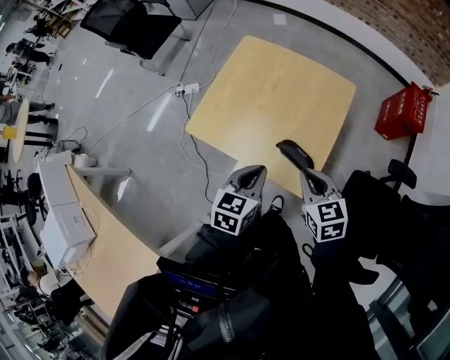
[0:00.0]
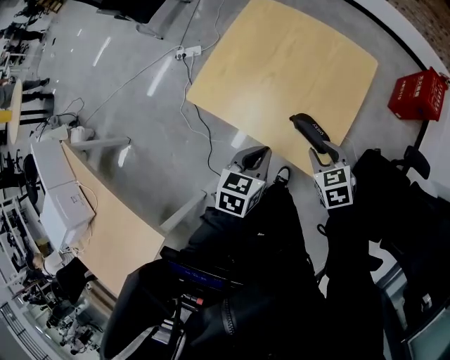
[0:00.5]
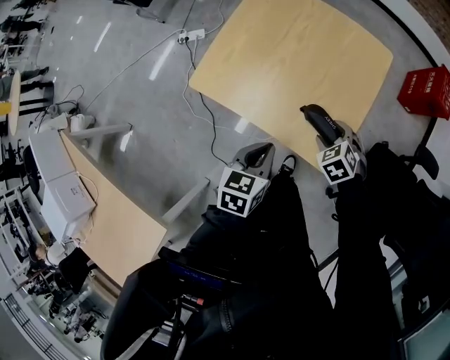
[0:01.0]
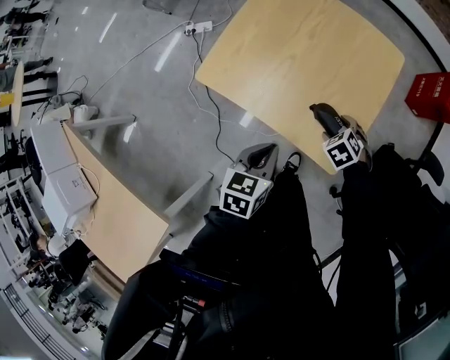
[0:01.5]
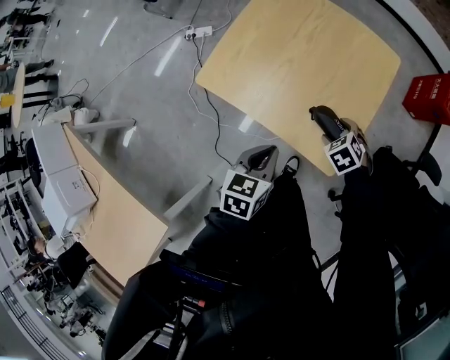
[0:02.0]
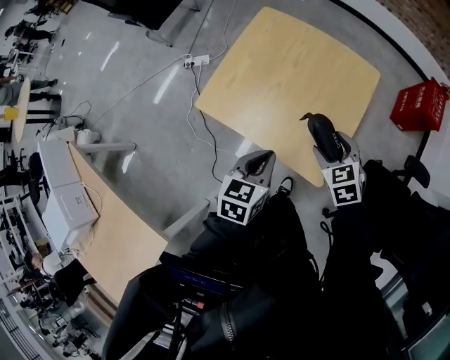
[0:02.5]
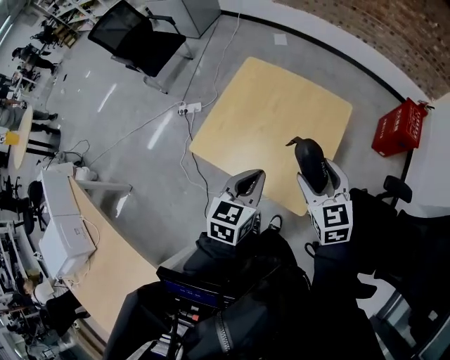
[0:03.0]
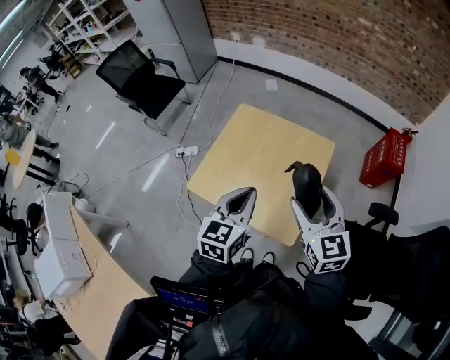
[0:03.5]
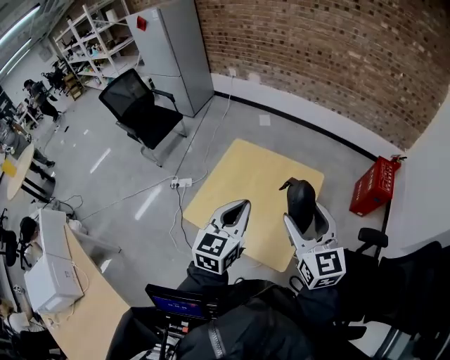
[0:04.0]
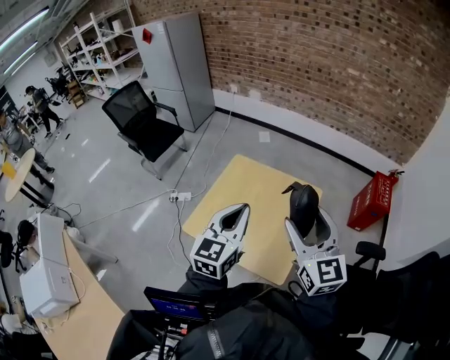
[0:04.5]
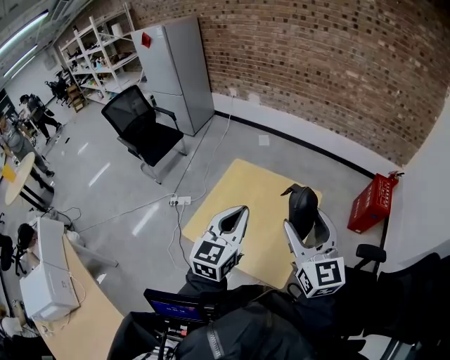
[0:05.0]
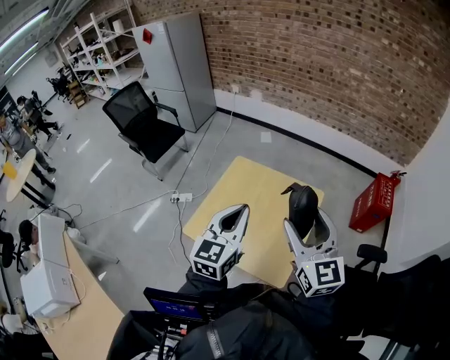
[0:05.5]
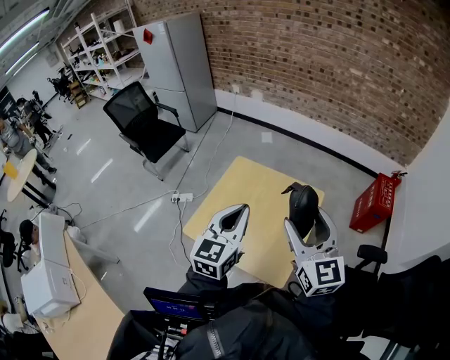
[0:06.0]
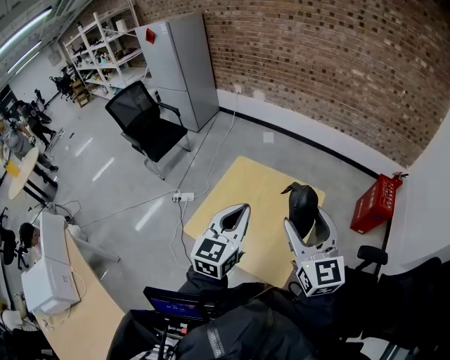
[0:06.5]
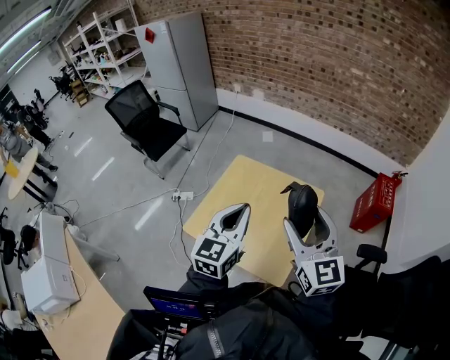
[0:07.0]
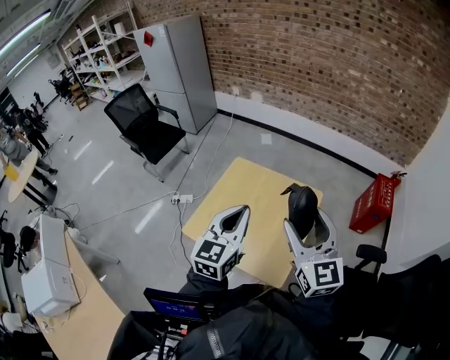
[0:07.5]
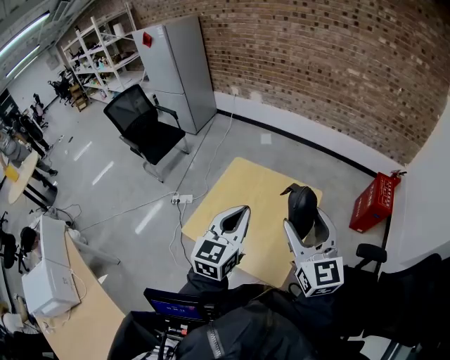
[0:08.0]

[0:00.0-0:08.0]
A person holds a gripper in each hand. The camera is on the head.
0:00.0 to 0:02.0: The right gripper goes some 20 cm downward, tips its fingers downward by roughly 30 degrees, and opens up. The left gripper goes about 10 cm downward.
0:02.0 to 0:04.0: The left gripper heads upward, covering approximately 30 cm, and points its fingers roughly 30 degrees further upward; the right gripper is displaced upward by about 50 cm, and points its fingers approximately 70 degrees further upward.
0:04.0 to 0:08.0: There are only small adjustments of the grippers.

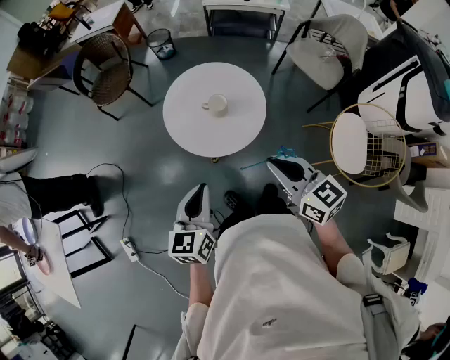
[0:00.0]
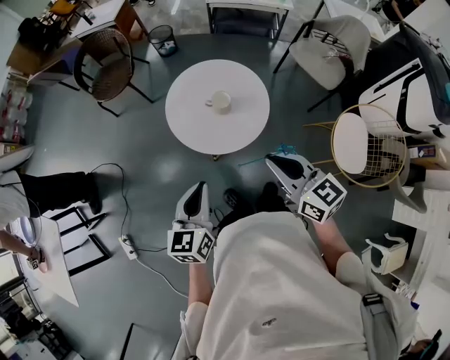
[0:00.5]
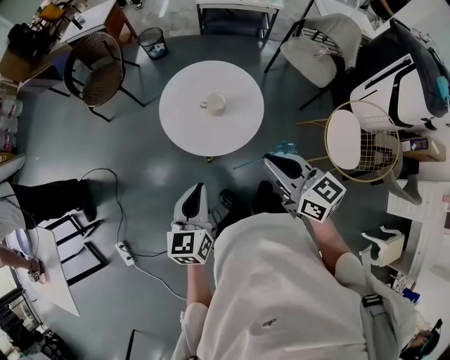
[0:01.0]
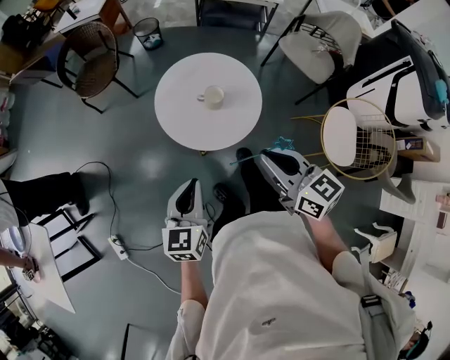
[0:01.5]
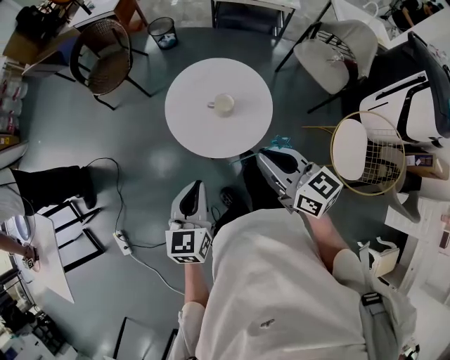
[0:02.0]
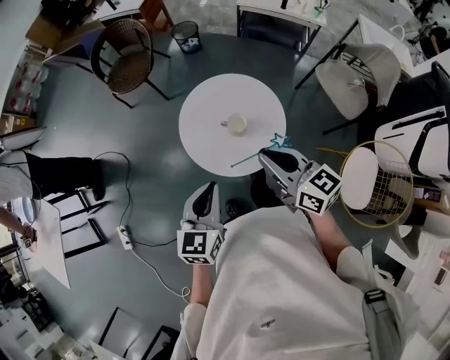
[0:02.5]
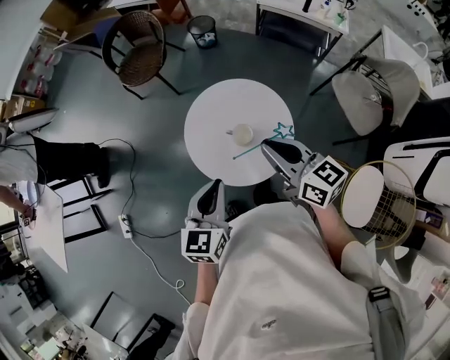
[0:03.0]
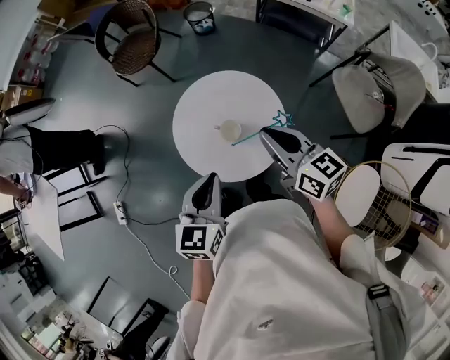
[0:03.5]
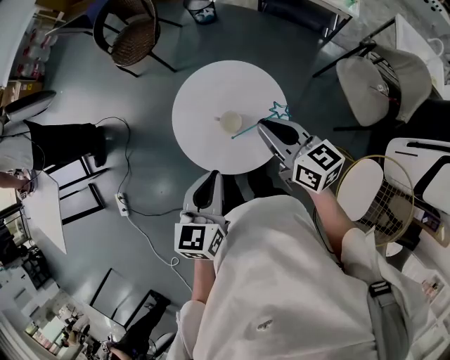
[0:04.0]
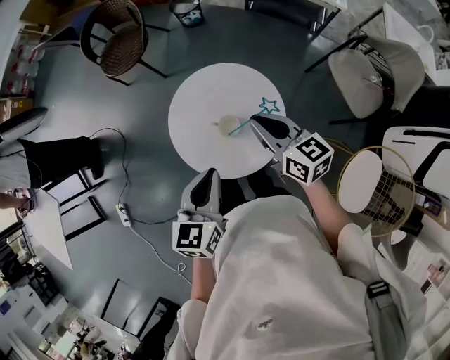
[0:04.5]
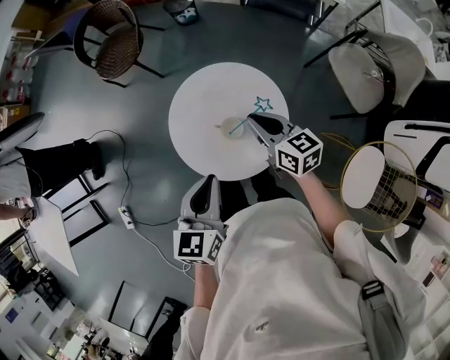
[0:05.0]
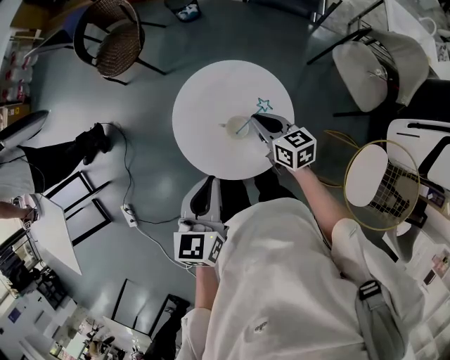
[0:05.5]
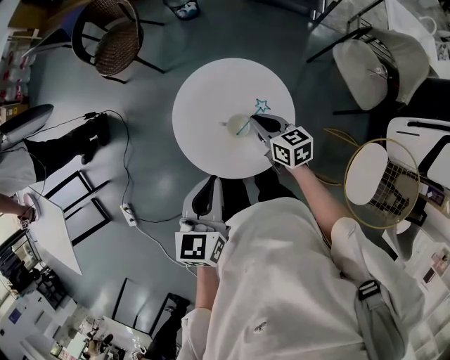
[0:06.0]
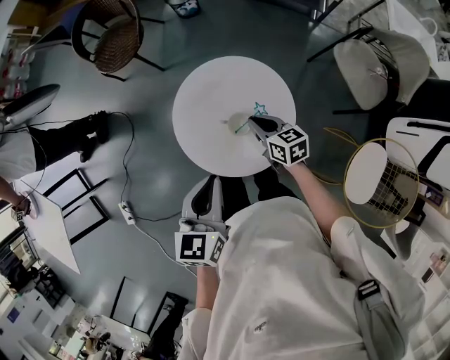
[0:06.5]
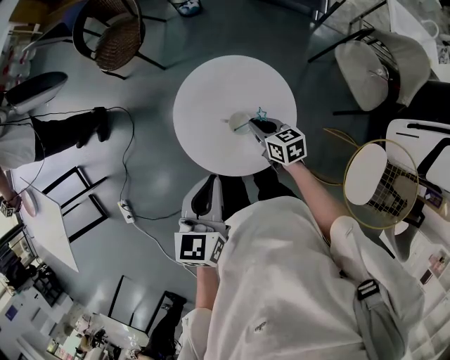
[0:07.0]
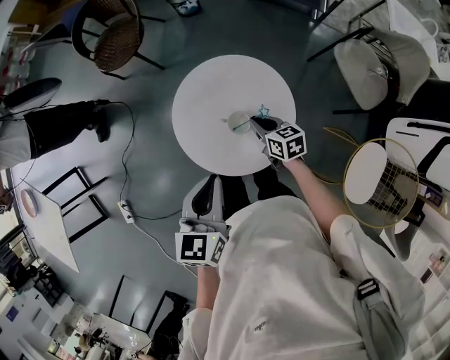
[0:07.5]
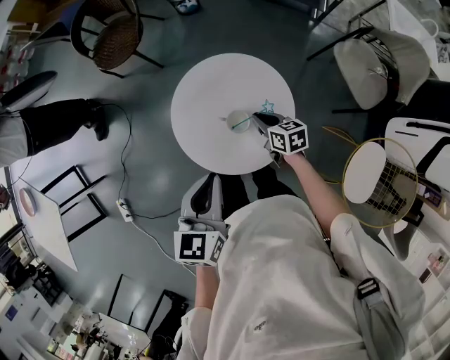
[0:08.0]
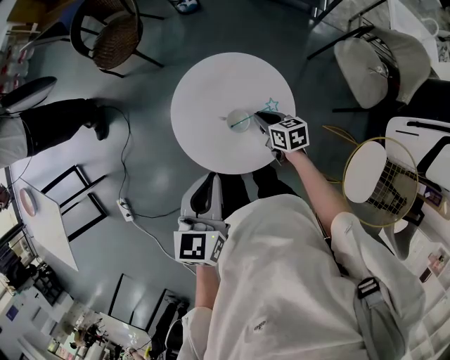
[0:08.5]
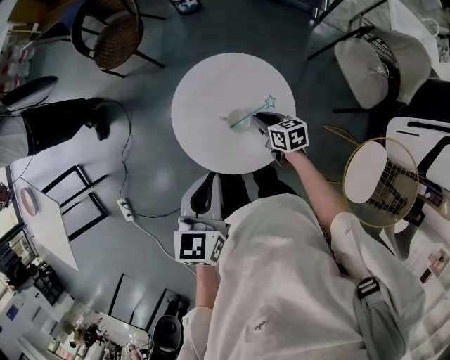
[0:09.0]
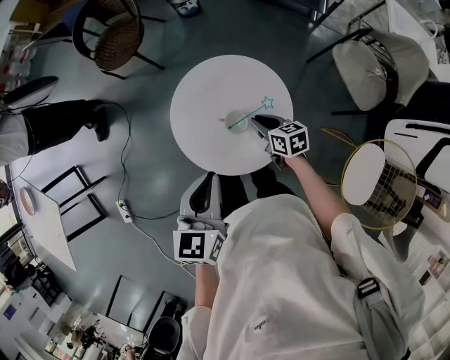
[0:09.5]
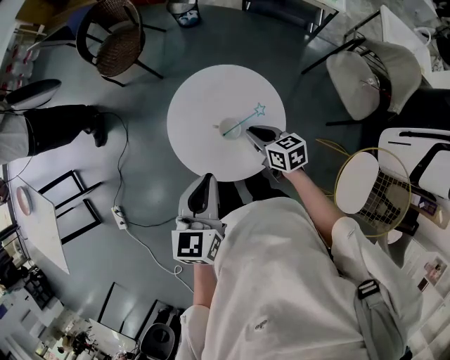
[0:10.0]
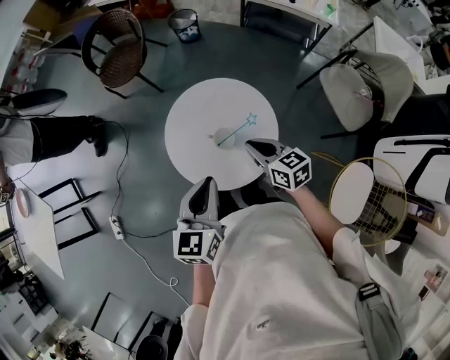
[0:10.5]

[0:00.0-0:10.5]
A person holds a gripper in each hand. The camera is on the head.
0:00.0 to 0:02.0: The left gripper shifts by roughly 5 cm. Meanwhile the right gripper shifts about 5 cm forward.
0:02.0 to 0:04.0: The right gripper shifts some 20 cm forward and to the right, while the left gripper heads to the right and forward, covering roughly 20 cm.
0:04.0 to 0:06.5: The right gripper shifts approximately 20 cm downward, and changes its angle by approximately 20 degrees; the left gripper moves roughly 5 cm.
0:06.5 to 0:08.5: The right gripper is displaced downward by approximately 5 cm.
0:08.5 to 0:10.5: The right gripper shifts some 15 cm upward.

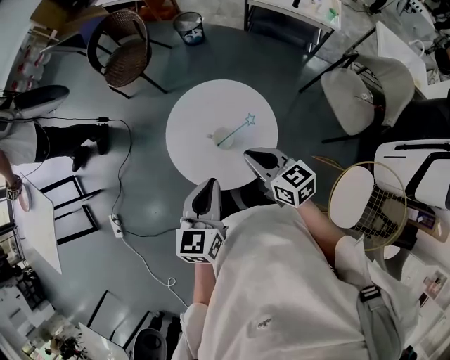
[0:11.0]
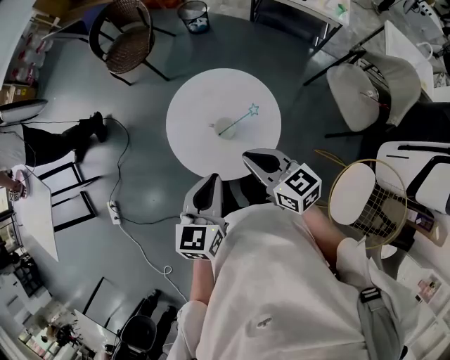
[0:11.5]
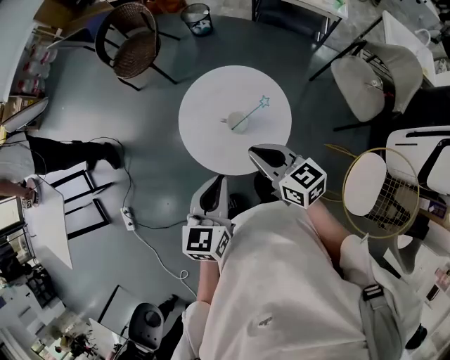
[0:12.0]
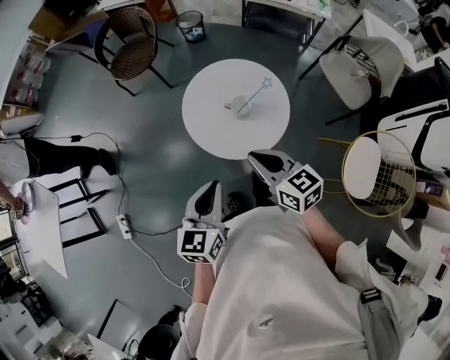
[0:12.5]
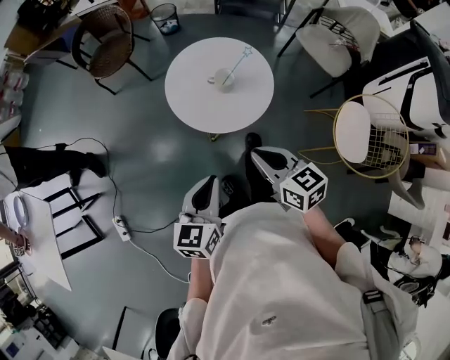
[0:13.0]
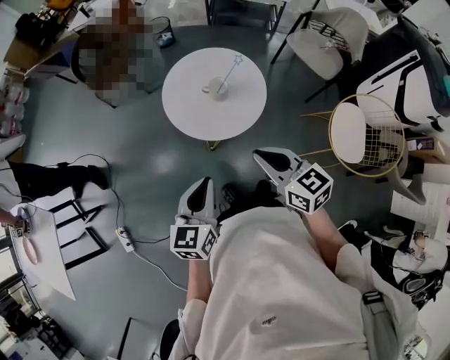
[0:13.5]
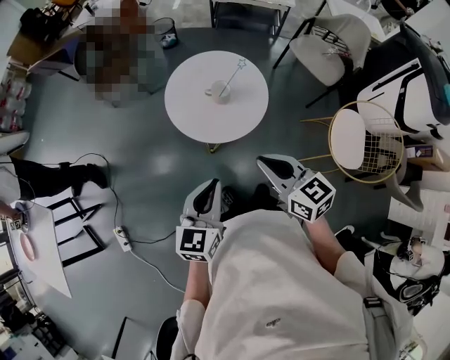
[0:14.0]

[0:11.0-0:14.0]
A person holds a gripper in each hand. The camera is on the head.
0:11.0 to 0:12.5: The two grippers go some 20 cm to the left and backward.
0:12.5 to 0:14.0: Both grippers move backward, about 10 cm.

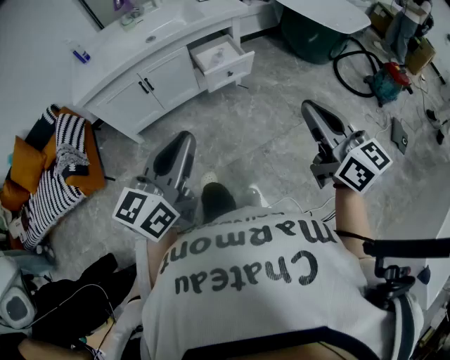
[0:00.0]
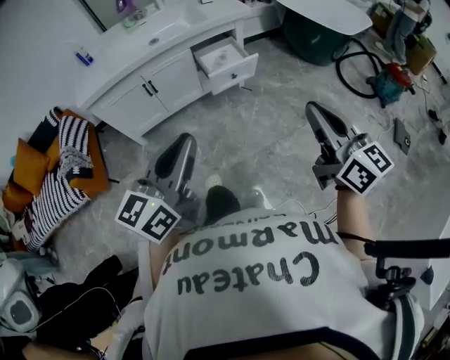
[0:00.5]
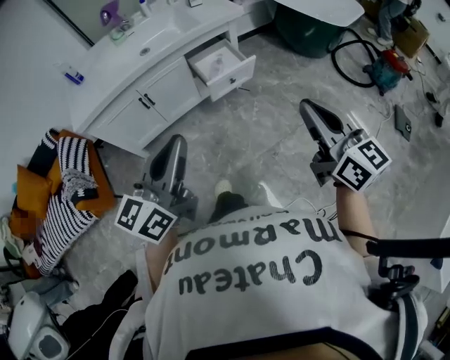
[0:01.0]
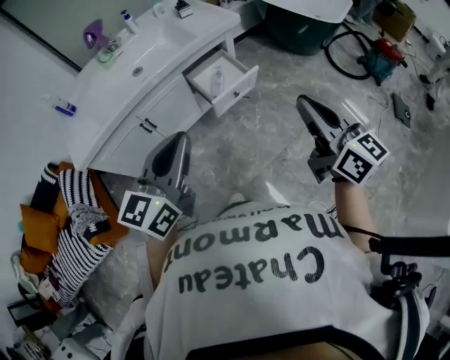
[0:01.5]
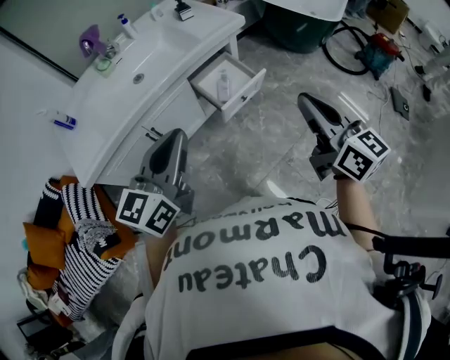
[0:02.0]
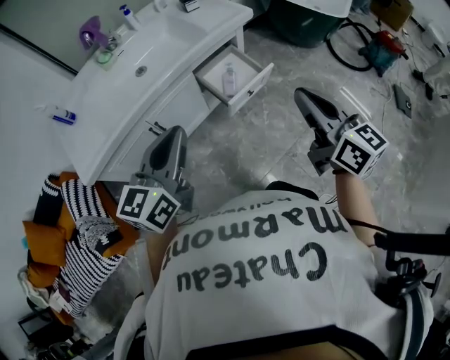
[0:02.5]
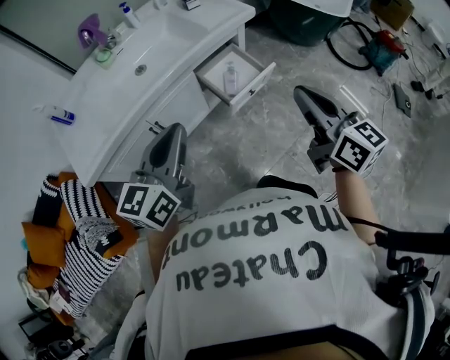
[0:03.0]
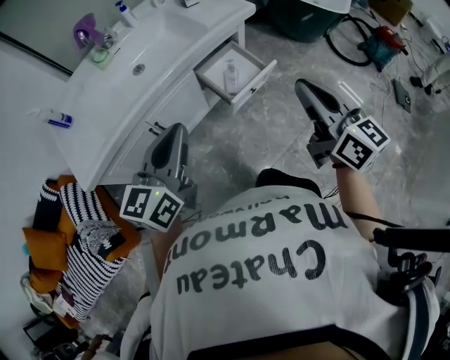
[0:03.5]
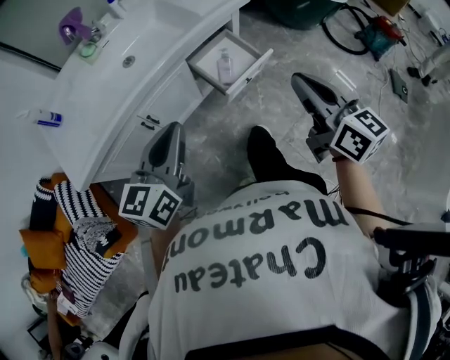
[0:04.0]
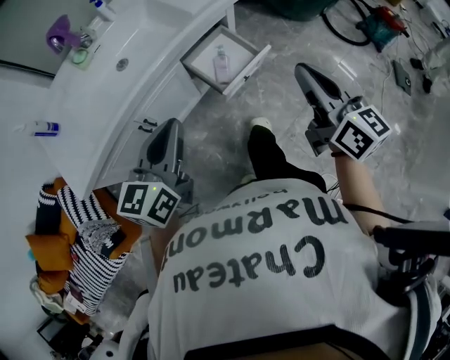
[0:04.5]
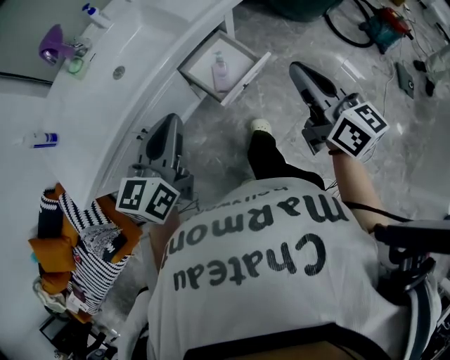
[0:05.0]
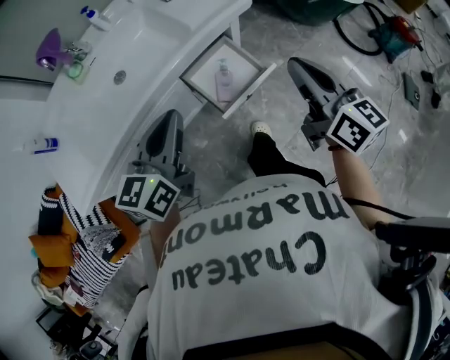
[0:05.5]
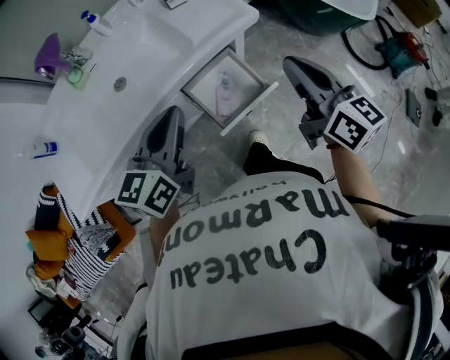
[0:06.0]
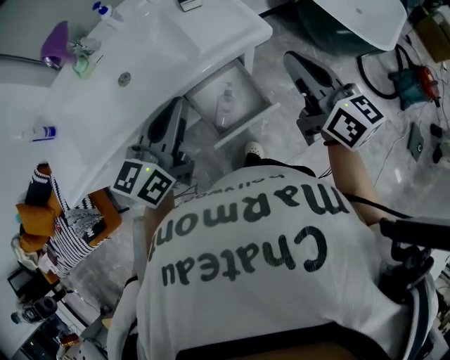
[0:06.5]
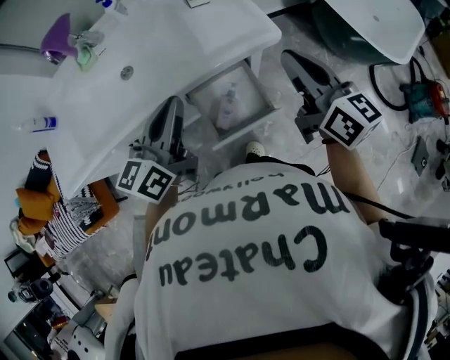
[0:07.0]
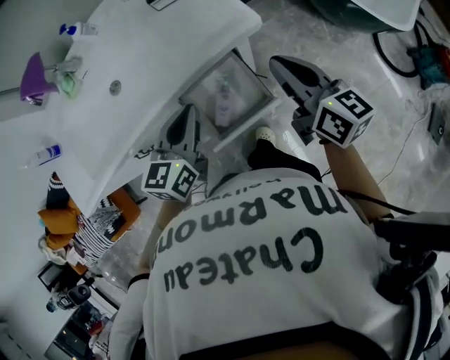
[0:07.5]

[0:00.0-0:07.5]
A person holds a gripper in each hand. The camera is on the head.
0:00.0 to 0:02.0: The grippers both shift forward and to the left by about 30 cm.
0:02.0 to 0:04.0: The right gripper travels forward and to the left by approximately 10 cm. Meanwhile the left gripper goes approximately 5 cm downward.
0:04.0 to 0:05.5: The two grippers go some 15 cm forward.
0:05.5 to 0:07.5: The left gripper travels forward, to the right and downward by about 20 cm, while the right gripper heads forward and downward, covering about 20 cm.
